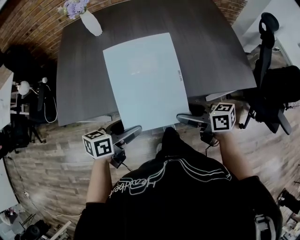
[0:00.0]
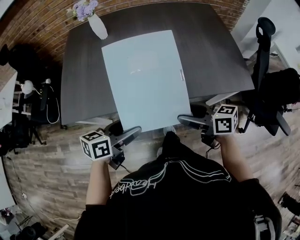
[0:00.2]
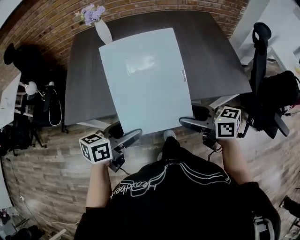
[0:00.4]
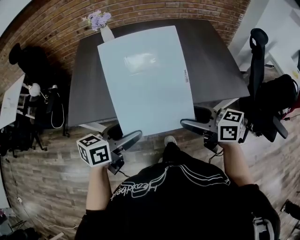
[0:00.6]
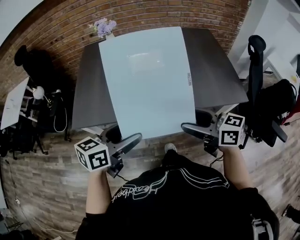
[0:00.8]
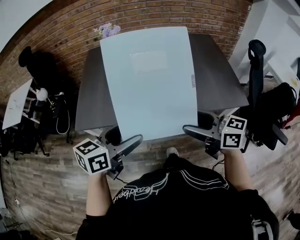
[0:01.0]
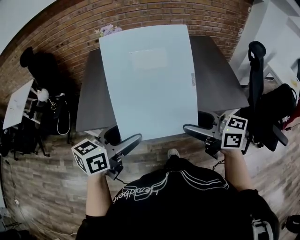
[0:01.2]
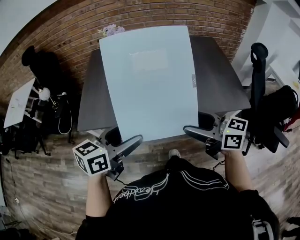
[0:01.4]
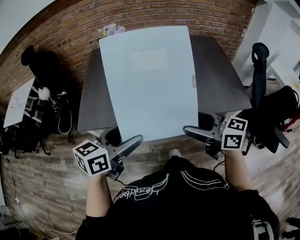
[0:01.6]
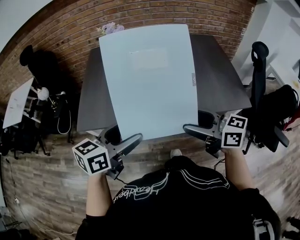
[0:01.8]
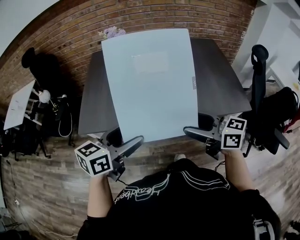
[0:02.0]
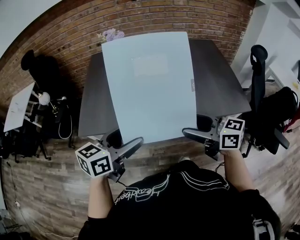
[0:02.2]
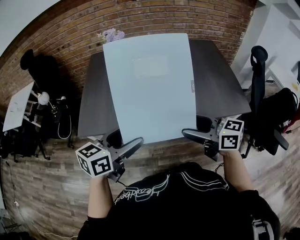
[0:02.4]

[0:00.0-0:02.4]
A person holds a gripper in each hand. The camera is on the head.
0:00.0 to 0:01.2: Both grippers move upward, about 20 cm. The left gripper turns by some 30 degrees. The right gripper changes its angle by about 30 degrees.
0:01.2 to 0:02.4: The grippers stay close to where they were, moving slightly.

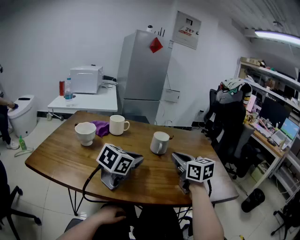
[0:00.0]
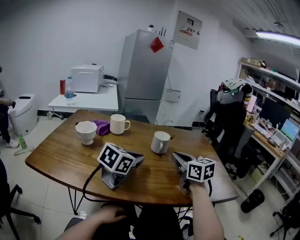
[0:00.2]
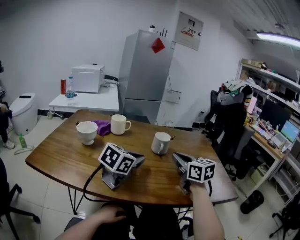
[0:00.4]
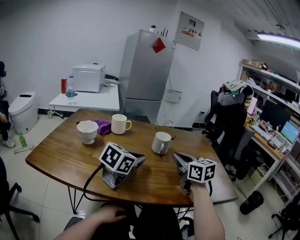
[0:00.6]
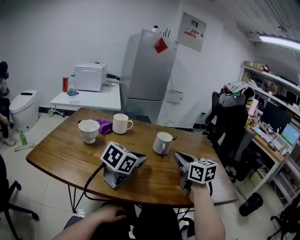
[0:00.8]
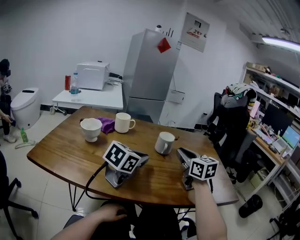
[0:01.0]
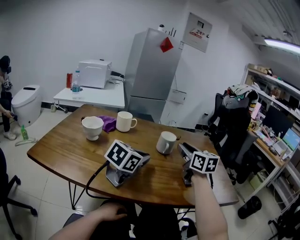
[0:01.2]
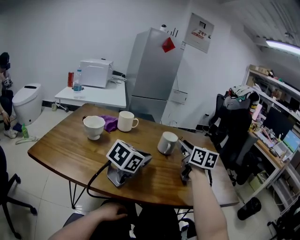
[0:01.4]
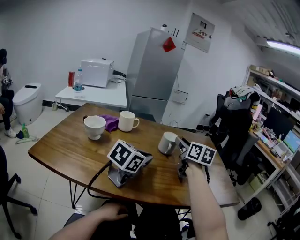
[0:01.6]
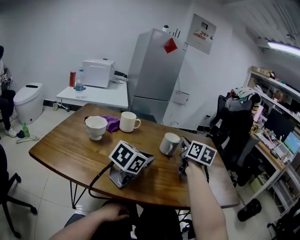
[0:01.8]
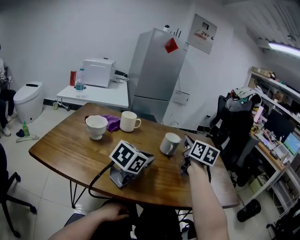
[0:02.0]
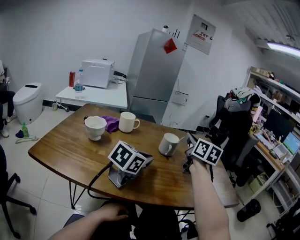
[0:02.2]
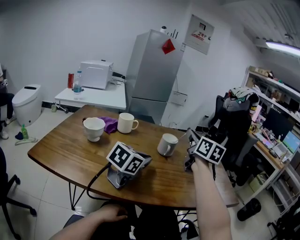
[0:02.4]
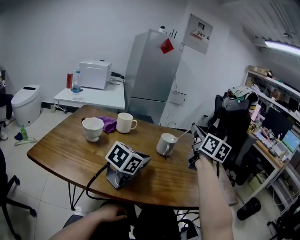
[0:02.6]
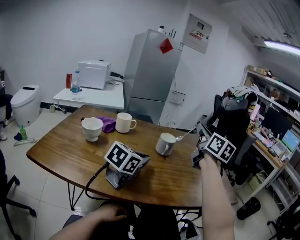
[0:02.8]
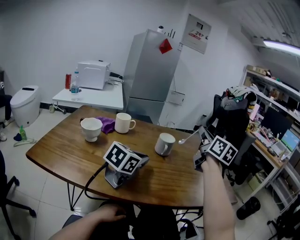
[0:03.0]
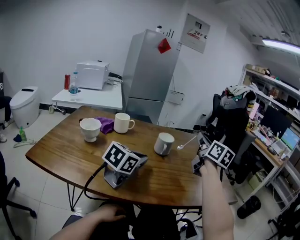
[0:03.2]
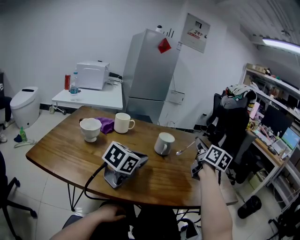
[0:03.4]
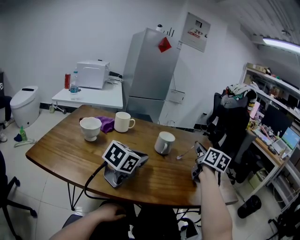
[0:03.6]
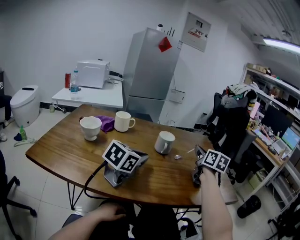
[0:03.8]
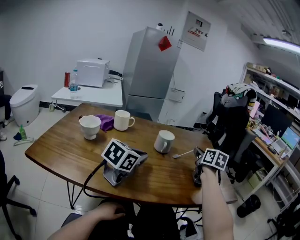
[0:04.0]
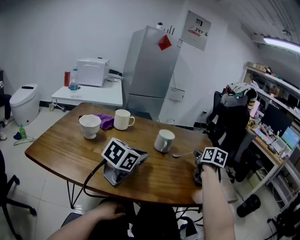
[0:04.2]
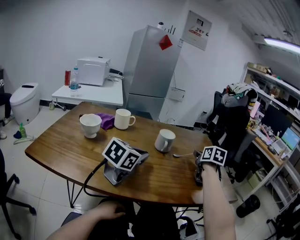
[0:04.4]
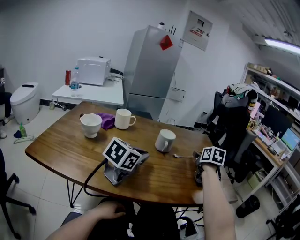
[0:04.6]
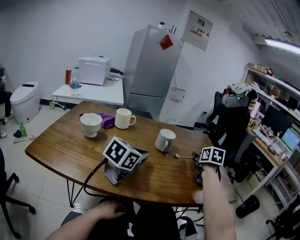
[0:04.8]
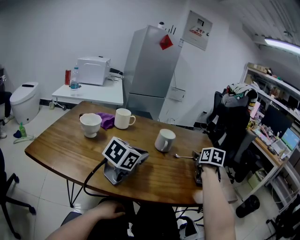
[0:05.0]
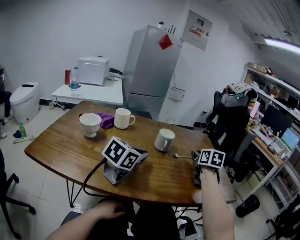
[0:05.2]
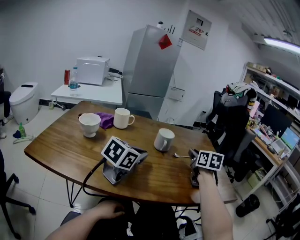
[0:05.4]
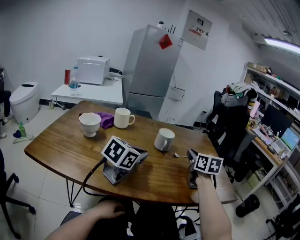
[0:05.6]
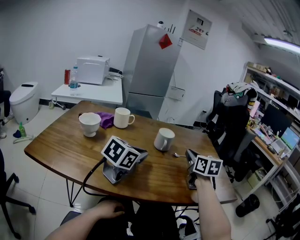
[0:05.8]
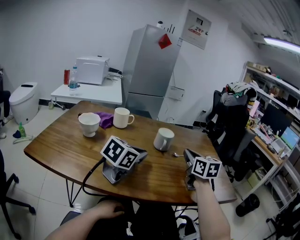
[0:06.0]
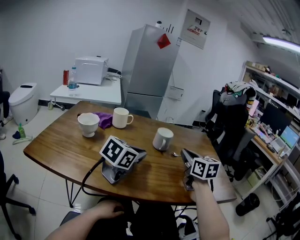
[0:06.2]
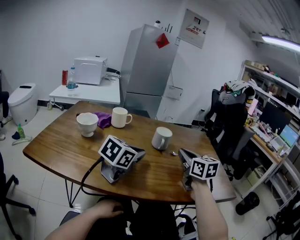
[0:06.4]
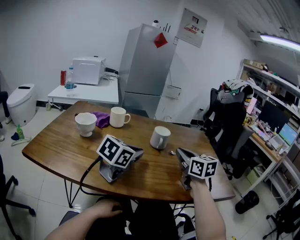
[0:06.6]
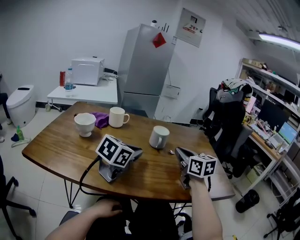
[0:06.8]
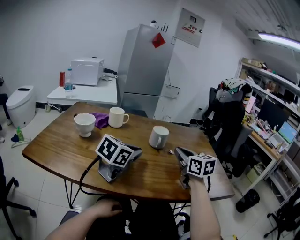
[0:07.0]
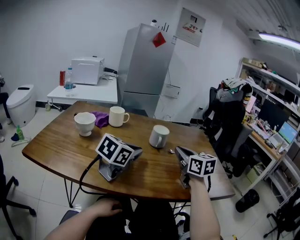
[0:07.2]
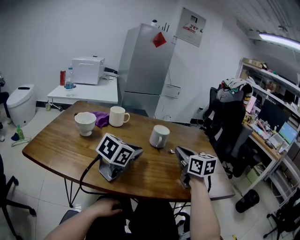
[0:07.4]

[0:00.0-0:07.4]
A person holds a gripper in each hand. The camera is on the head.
0:00.0 to 0:01.4: The right gripper travels forward by roughly 5 cm, and opens its fingers.
0:01.4 to 0:03.0: The right gripper shifts about 15 cm upward and to the right, and closes.
0:03.0 to 0:04.4: The right gripper goes some 15 cm downward, and angles its fingers downward, by about 30 degrees.
0:04.4 to 0:06.0: The right gripper travels backward and to the left by some 10 cm, rotates approximately 20 degrees, and closes up.
0:06.0 to 0:07.4: The grippers move only a little.

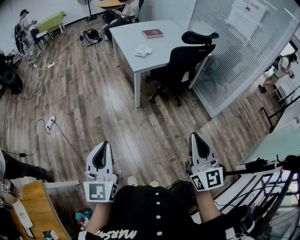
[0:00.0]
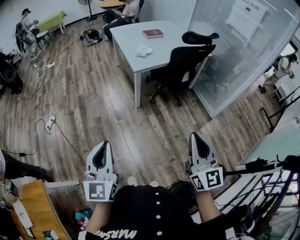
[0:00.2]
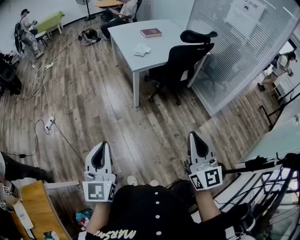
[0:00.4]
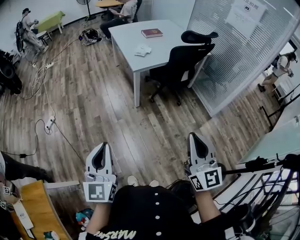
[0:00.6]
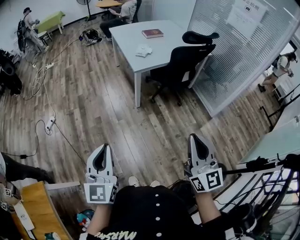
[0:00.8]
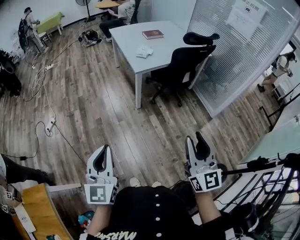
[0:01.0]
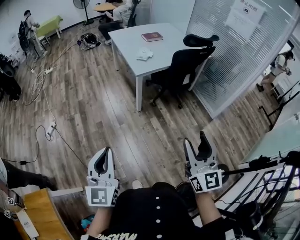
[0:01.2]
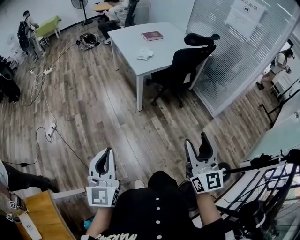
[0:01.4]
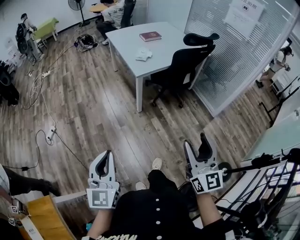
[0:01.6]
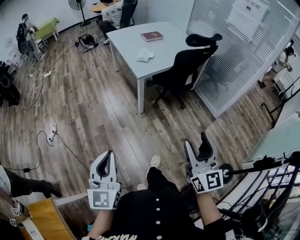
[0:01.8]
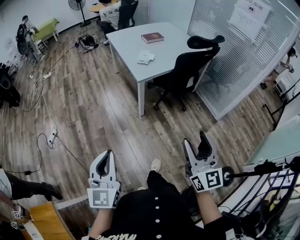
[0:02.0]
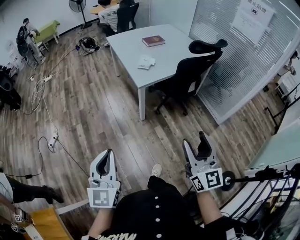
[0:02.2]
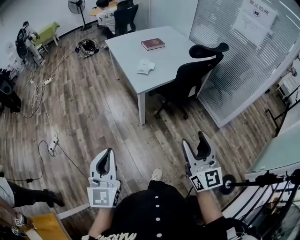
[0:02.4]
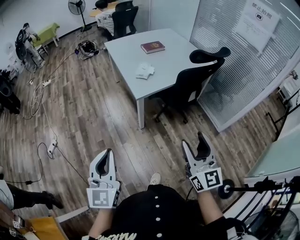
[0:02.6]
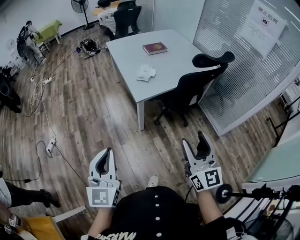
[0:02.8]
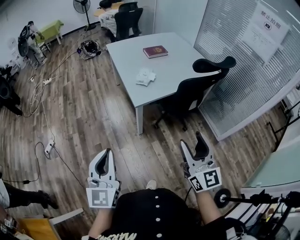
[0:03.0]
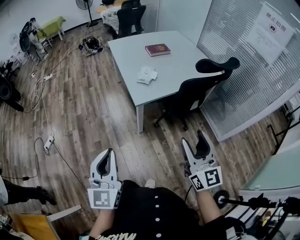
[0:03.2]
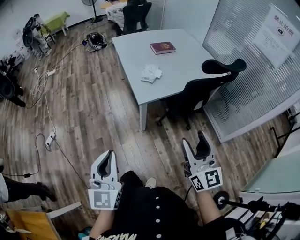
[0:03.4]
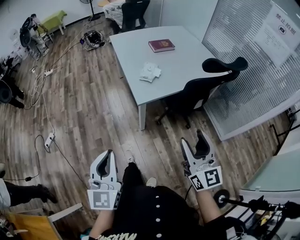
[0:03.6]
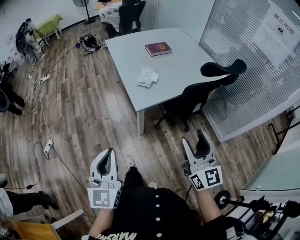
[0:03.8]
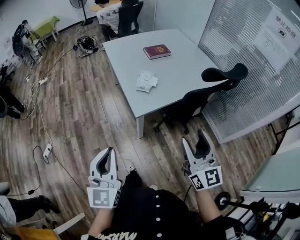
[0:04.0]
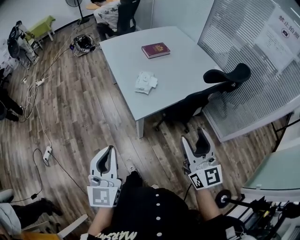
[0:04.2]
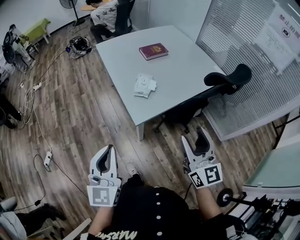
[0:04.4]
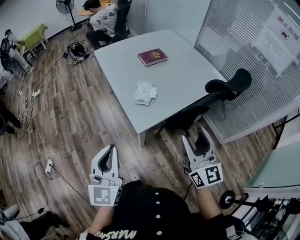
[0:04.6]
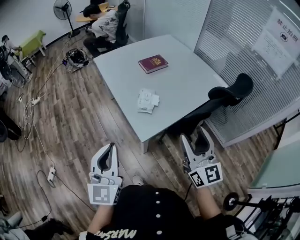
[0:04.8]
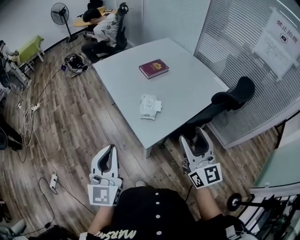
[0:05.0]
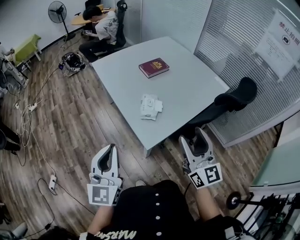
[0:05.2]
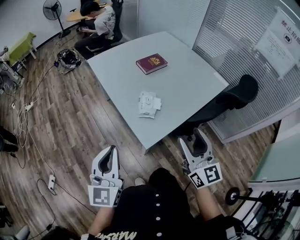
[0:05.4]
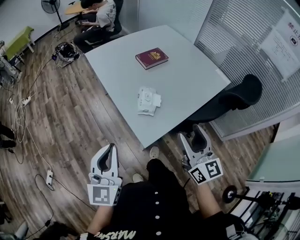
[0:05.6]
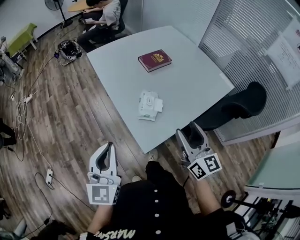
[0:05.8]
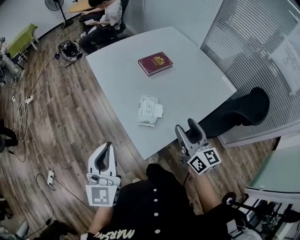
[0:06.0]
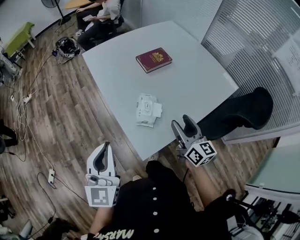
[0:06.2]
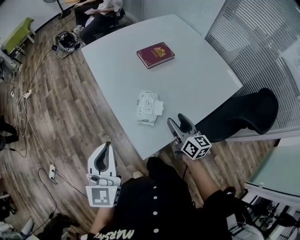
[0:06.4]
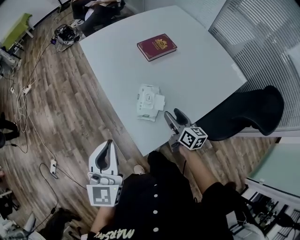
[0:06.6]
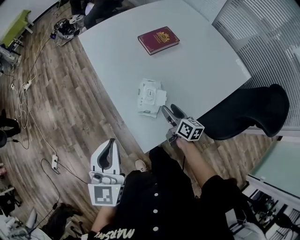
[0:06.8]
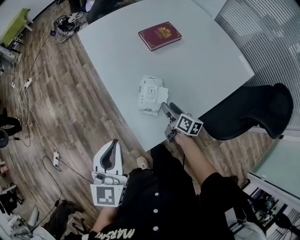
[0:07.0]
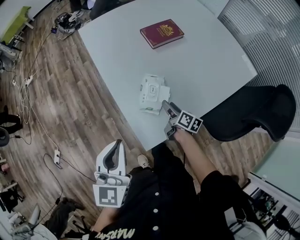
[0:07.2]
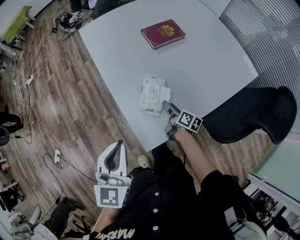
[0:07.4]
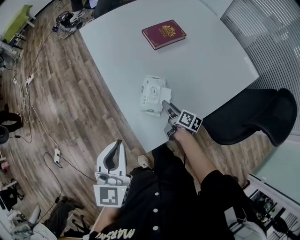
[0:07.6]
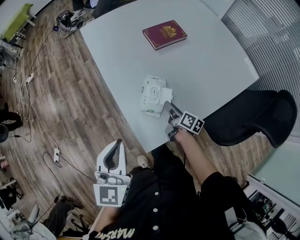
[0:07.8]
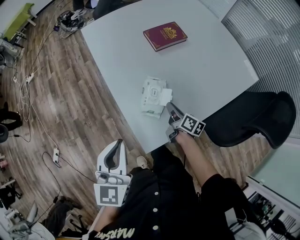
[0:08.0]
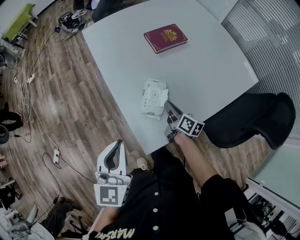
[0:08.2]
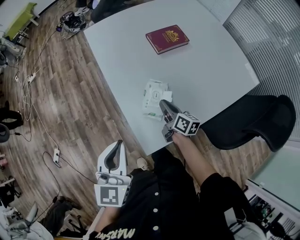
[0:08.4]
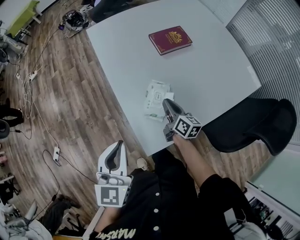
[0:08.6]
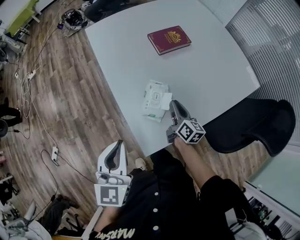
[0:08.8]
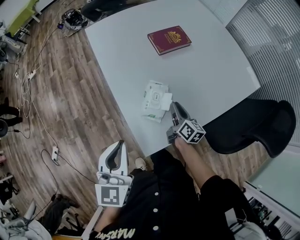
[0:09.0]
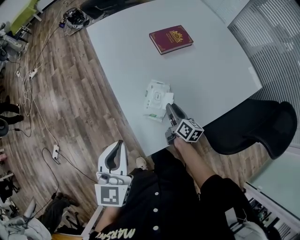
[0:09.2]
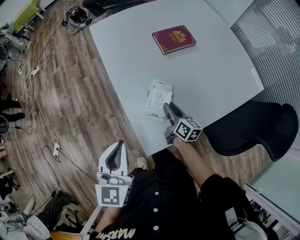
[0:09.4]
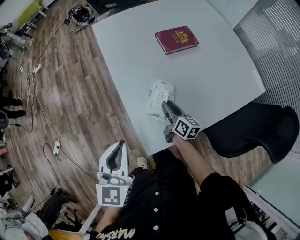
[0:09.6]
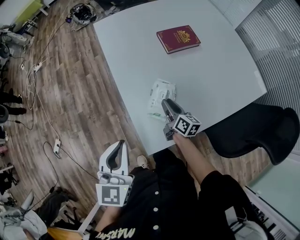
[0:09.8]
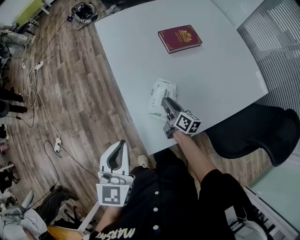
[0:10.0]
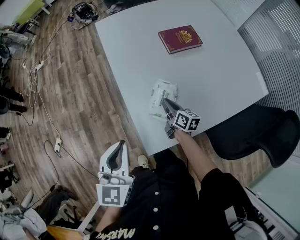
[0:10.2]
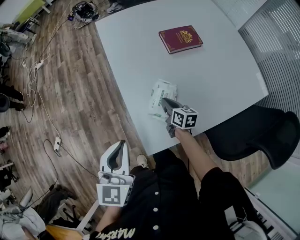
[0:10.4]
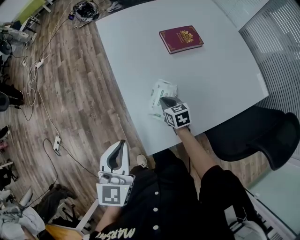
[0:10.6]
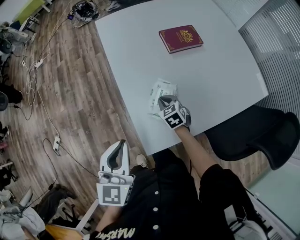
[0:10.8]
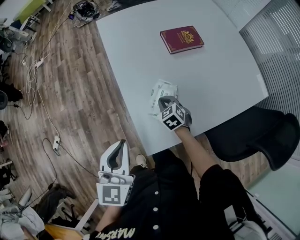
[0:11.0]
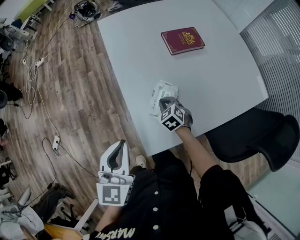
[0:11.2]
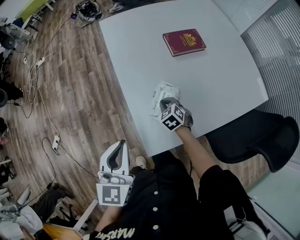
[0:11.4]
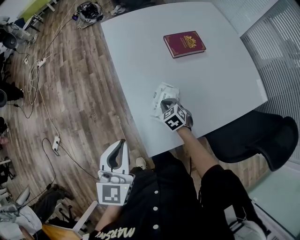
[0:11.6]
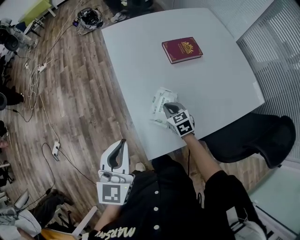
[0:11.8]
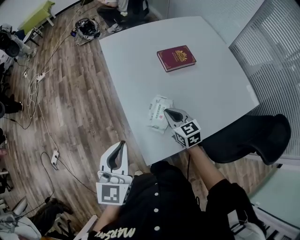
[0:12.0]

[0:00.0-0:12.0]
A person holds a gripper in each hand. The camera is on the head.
0:00.0 to 0:01.6: The grippers both shift to the left by approximately 5 cm. The right gripper opens its fingers.
0:01.6 to 0:03.0: Both grippers move forward, about 25 cm.
0:03.0 to 0:04.4: The two grippers go approximately 20 cm forward.
0:04.4 to 0:06.0: The two grippers go about 25 cm forward.
0:06.0 to 0:07.6: The right gripper moves downward and forward, roughly 30 cm, and rotates around the line of its fingers by roughly 50 degrees, clockwise from behind. Meanwhile the left gripper goes approximately 10 cm downward, to the right and forward.
0:07.6 to 0:09.0: The right gripper goes roughly 5 cm upward, rotates roughly 20 degrees, and closes up.
0:09.0 to 0:10.4: The right gripper goes roughly 10 cm to the left, and turns by roughly 30 degrees.
0:10.4 to 0:12.0: The right gripper is displaced upward by some 10 cm, and turns by some 40 degrees.

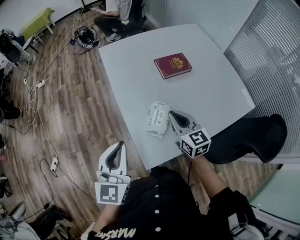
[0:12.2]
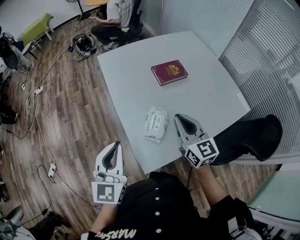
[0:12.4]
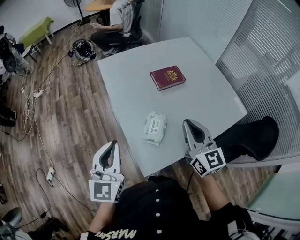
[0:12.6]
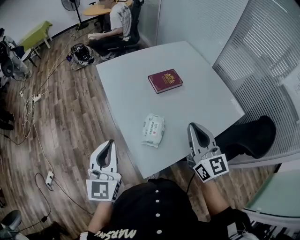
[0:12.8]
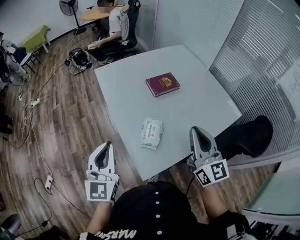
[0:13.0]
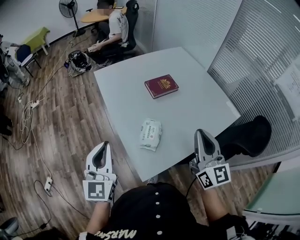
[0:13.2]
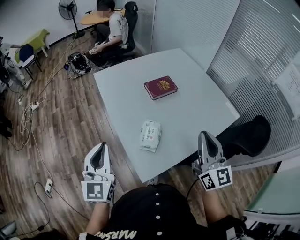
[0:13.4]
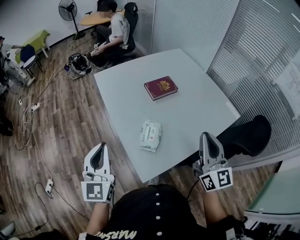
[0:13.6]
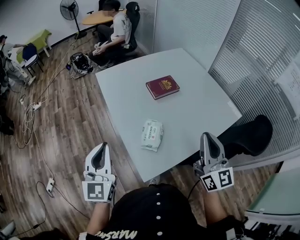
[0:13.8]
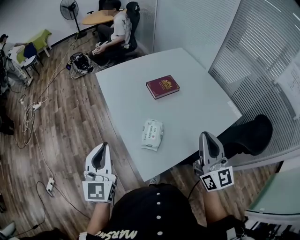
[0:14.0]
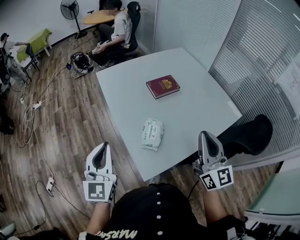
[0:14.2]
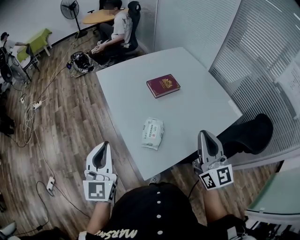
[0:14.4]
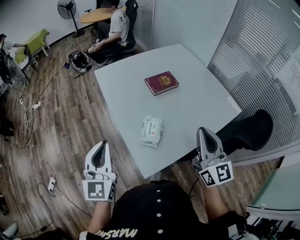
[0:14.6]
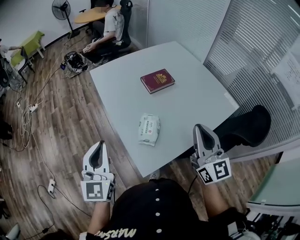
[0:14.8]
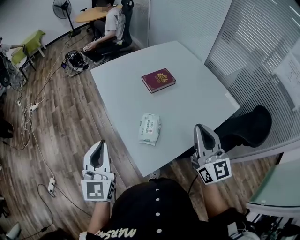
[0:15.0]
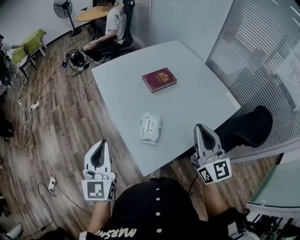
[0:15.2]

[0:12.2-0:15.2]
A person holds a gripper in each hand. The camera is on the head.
0:12.2 to 0:13.8: The right gripper heads upward, backward and to the right, covering roughly 25 cm, and swivels some 30 degrees; the left gripper travels to the left by about 5 cm.
0:13.8 to 0:15.2: The grippers stay close to where they were, moving slightly.
